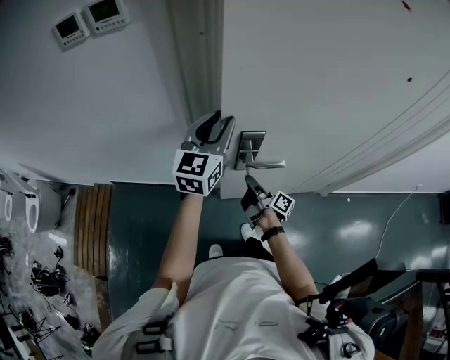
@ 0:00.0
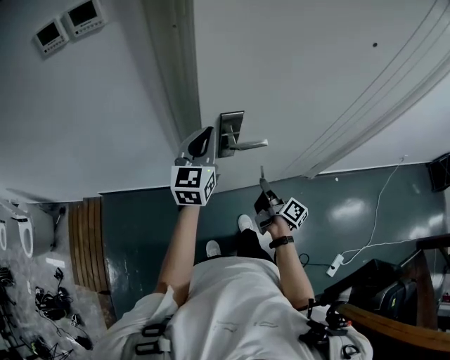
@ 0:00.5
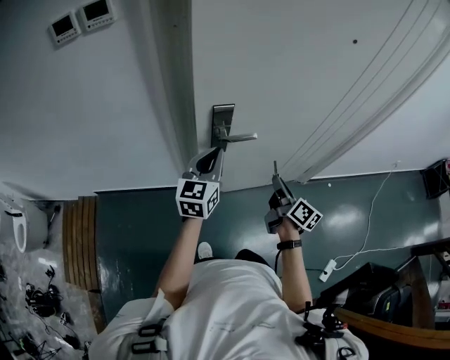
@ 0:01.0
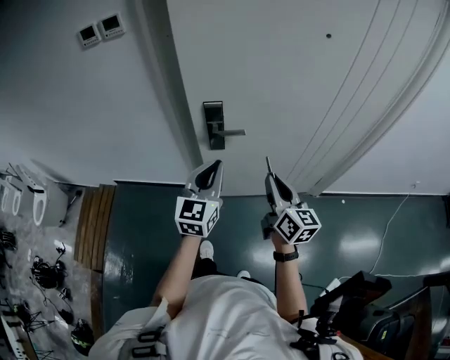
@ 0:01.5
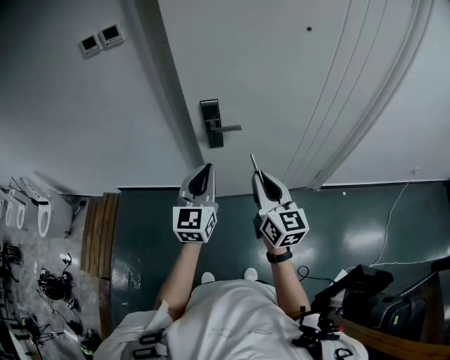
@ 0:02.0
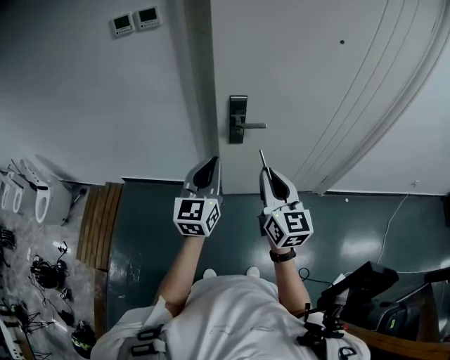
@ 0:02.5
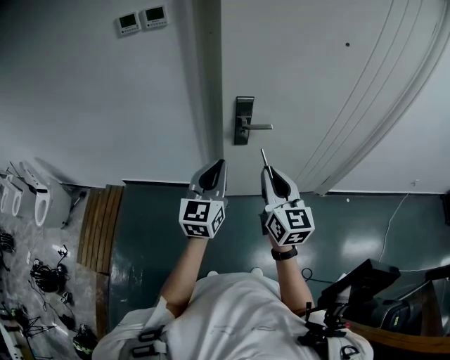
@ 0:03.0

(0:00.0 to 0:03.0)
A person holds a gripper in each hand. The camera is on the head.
0:00.0 - 0:01.5: The right gripper heads upward, backward and to the right, covering some 35 cm, and twists some 60 degrees counterclockwise, seen from behind; the left gripper moves backward and to the right, about 25 cm, and closes.
0:01.5 - 0:03.0: The left gripper travels to the left and backward by about 15 cm; the right gripper goes approximately 15 cm to the left, backward and upward.

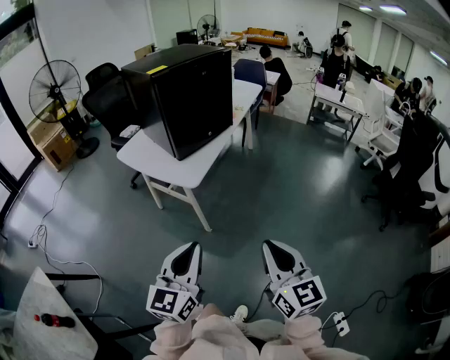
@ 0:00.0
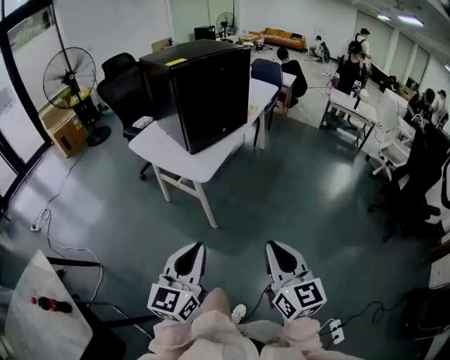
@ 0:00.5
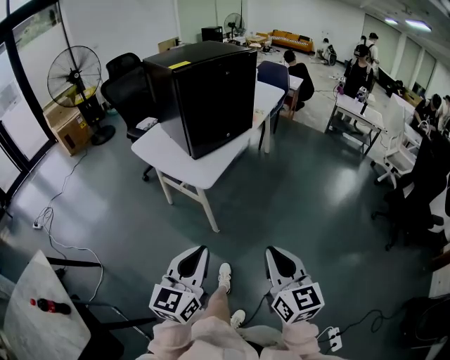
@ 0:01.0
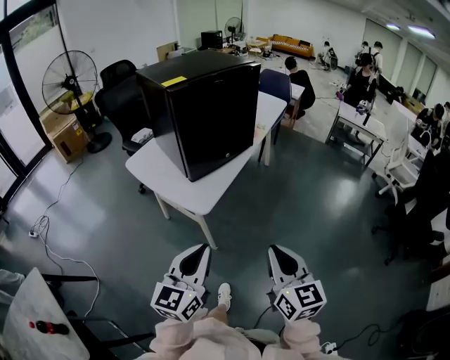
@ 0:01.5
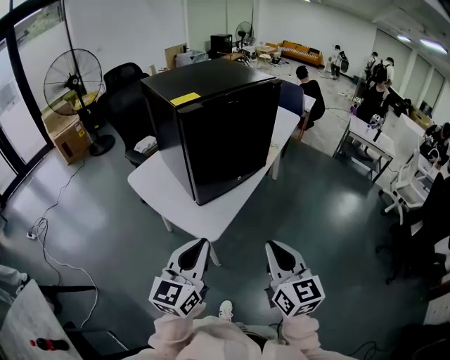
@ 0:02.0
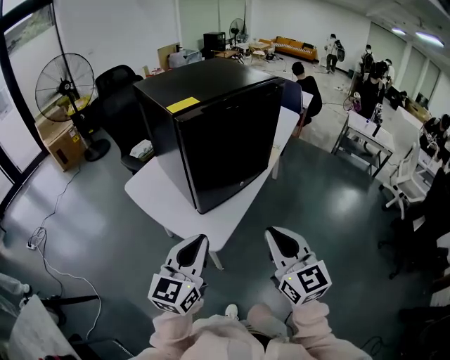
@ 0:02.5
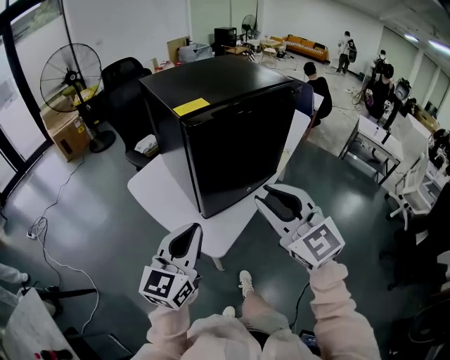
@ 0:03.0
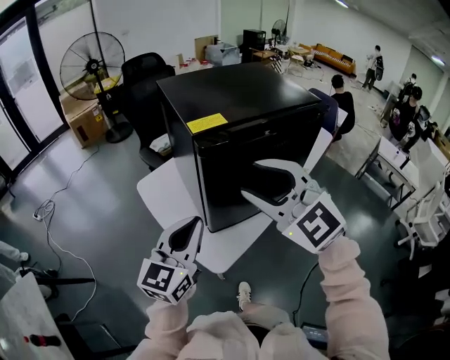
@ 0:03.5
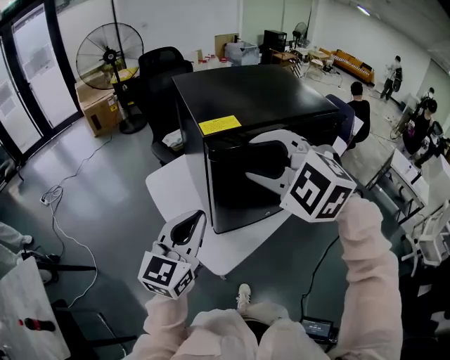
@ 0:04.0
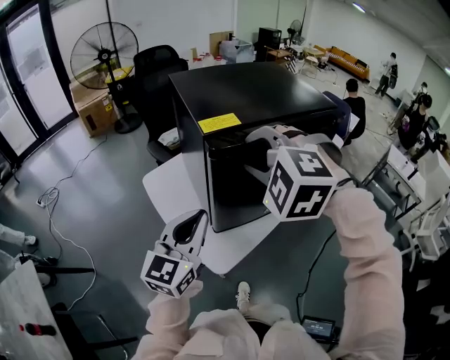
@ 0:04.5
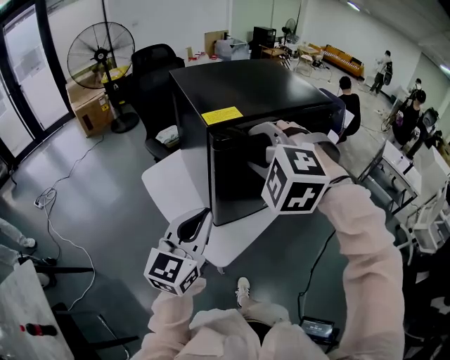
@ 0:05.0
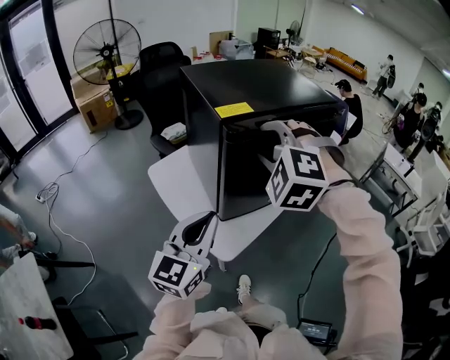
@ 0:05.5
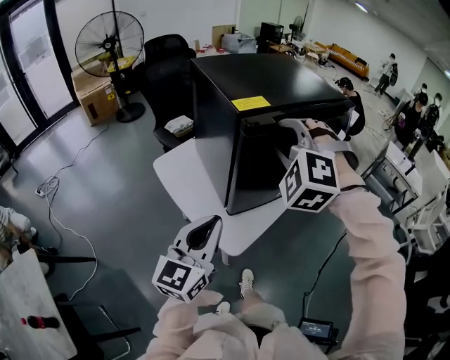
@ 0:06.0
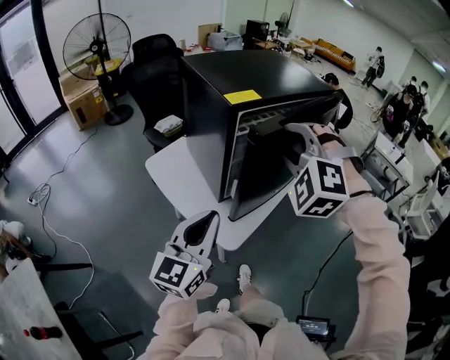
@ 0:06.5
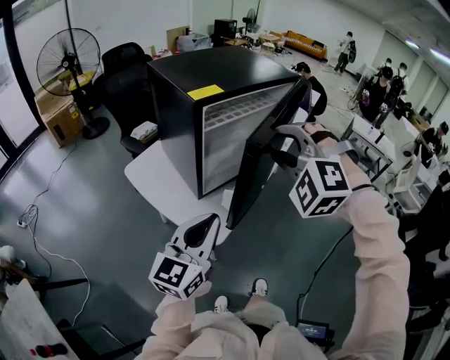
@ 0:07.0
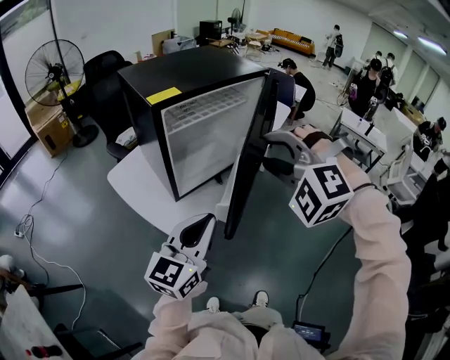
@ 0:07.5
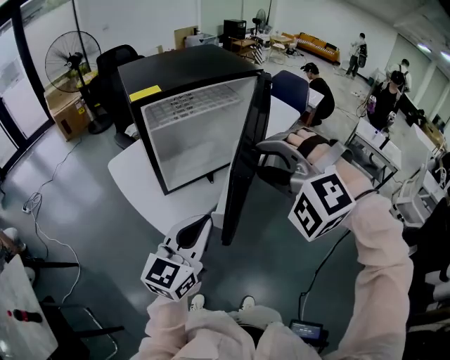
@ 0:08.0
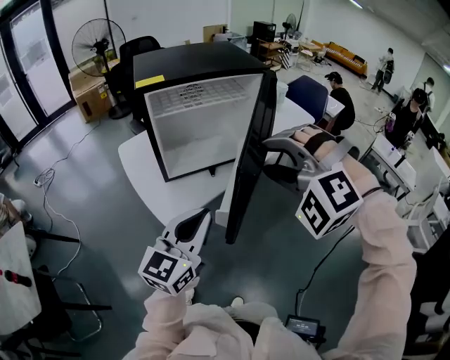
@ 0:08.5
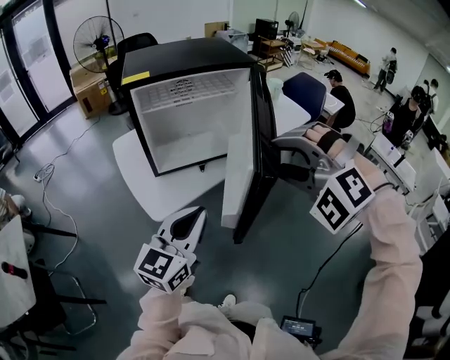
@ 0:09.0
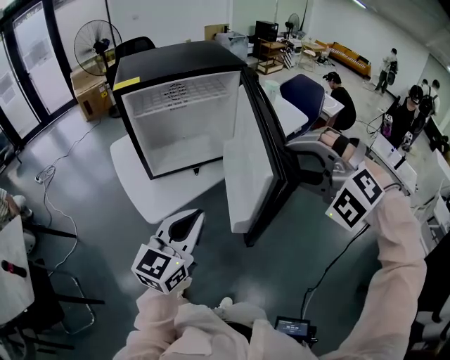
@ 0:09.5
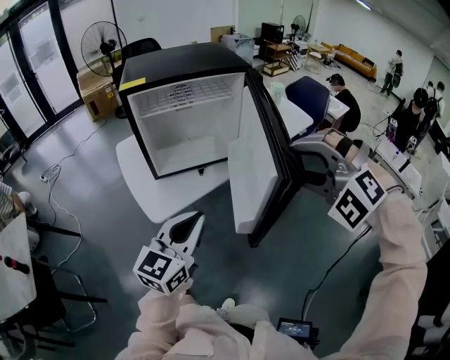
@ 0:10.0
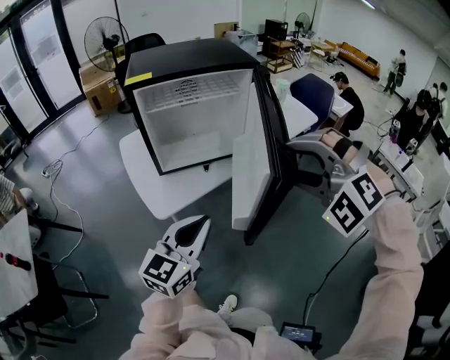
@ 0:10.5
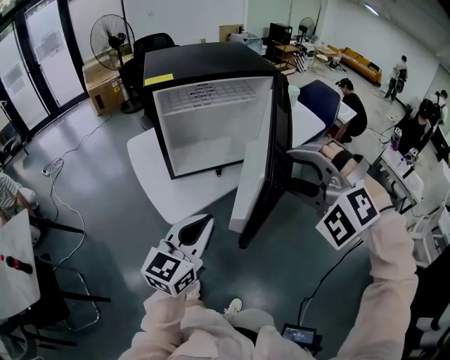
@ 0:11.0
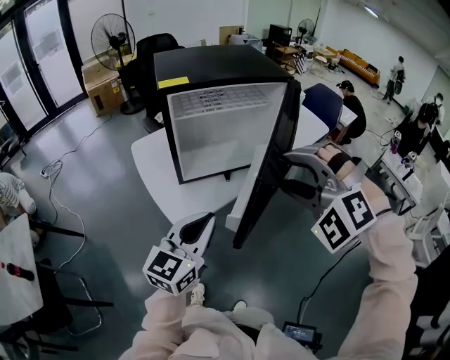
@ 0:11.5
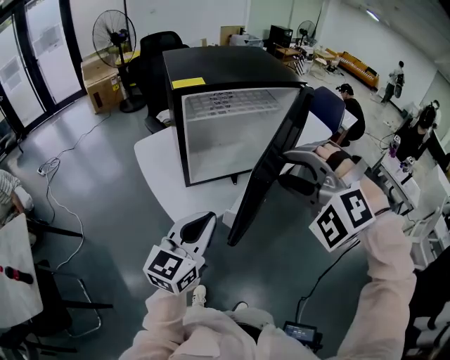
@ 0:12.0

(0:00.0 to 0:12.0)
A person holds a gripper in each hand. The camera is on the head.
0:00.0 - 0:02.0: The two grippers go about 30 cm forward.
0:02.0 - 0:04.0: The left gripper goes about 20 cm forward. The right gripper travels forward and upward by about 35 cm, rotates around the line of its fingers by roughly 70 degrees, counterclockwise from behind, and opens its fingers.
0:04.0 - 0:06.0: The left gripper heads backward, covering some 10 cm, while the right gripper turns by about 30 degrees.
0:06.0 - 0:08.0: The right gripper goes roughly 25 cm to the right and backward. The left gripper travels to the right by approximately 25 cm.
0:08.0 - 0:10.0: The left gripper moves to the right, about 10 cm; the right gripper travels to the right by roughly 20 cm.
0:10.0 - 0:12.0: Both grippers move to the left, some 15 cm.

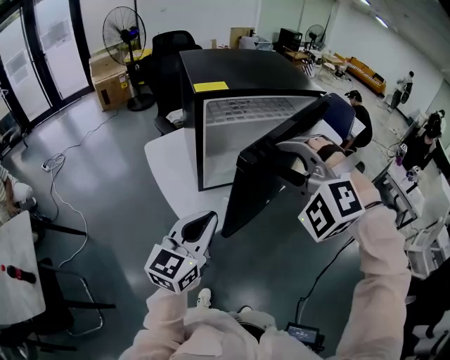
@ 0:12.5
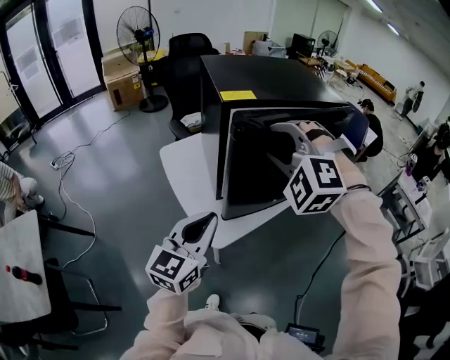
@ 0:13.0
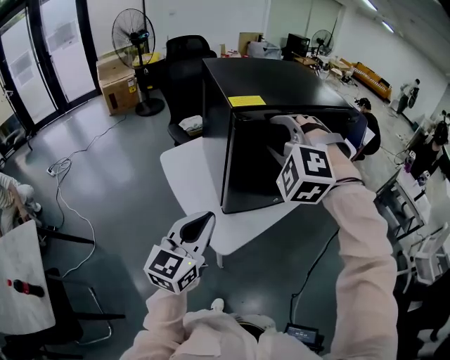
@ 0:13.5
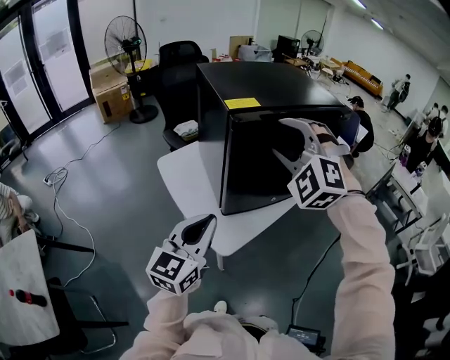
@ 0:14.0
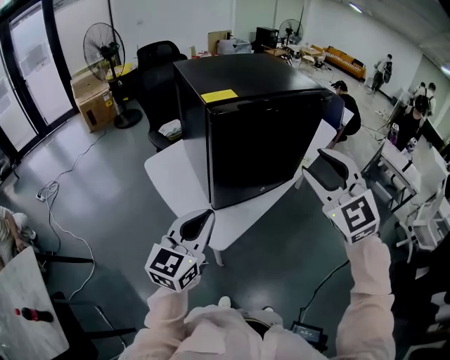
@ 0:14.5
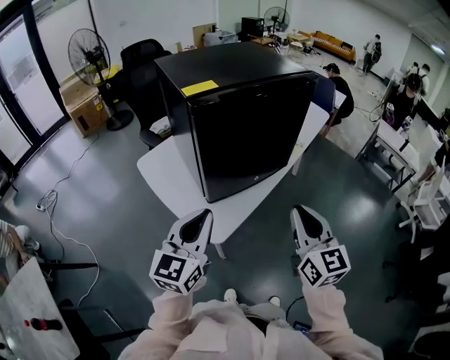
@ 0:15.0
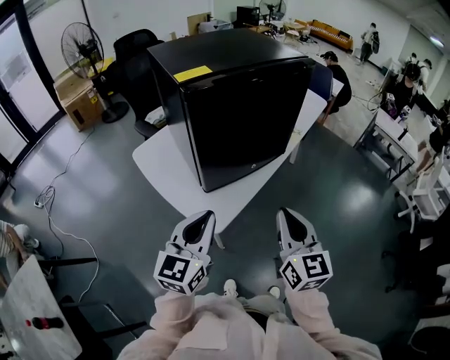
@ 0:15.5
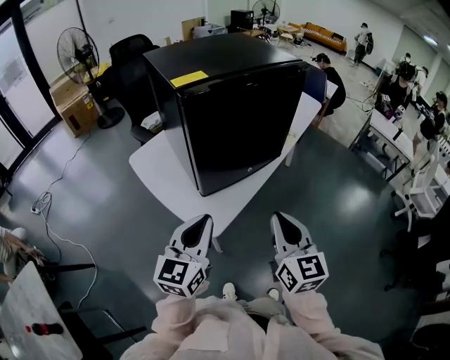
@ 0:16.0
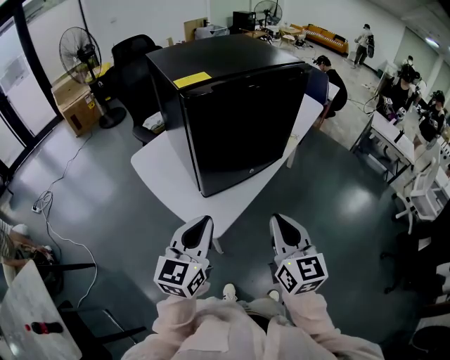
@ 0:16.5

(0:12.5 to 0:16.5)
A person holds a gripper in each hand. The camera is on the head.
0:12.5 - 0:14.5: The left gripper goes some 10 cm to the left. Meanwhile the right gripper reaches approximately 10 cm to the left, then returns, and rolls clockwise, seen from behind, by roughly 50 degrees.
0:14.5 - 0:16.5: The right gripper shifts about 20 cm downward and backward, rolls clockwise, seen from behind, by roughly 50 degrees, and closes. The left gripper changes place by roughly 5 cm.

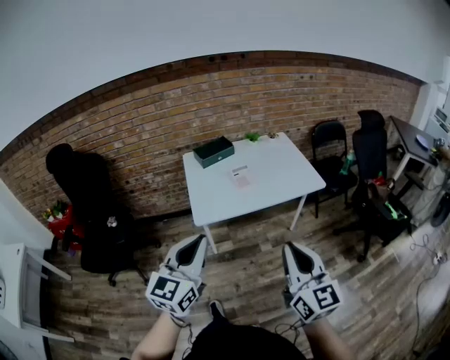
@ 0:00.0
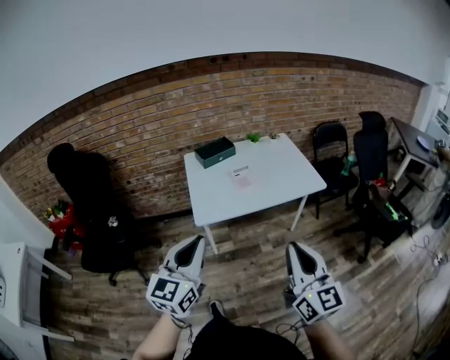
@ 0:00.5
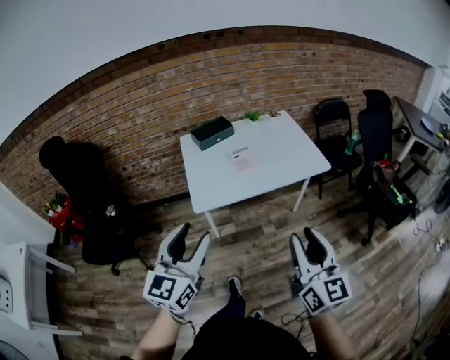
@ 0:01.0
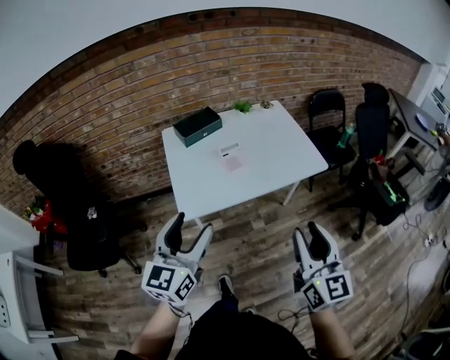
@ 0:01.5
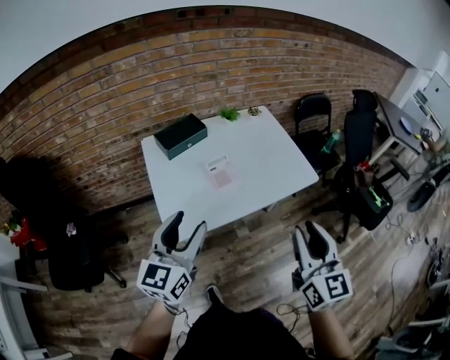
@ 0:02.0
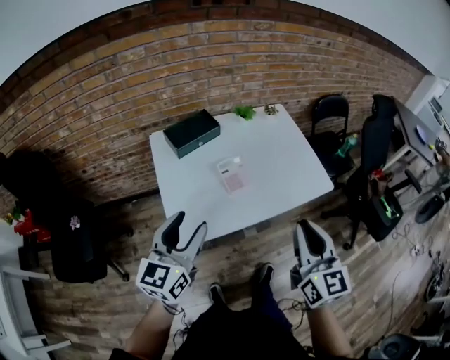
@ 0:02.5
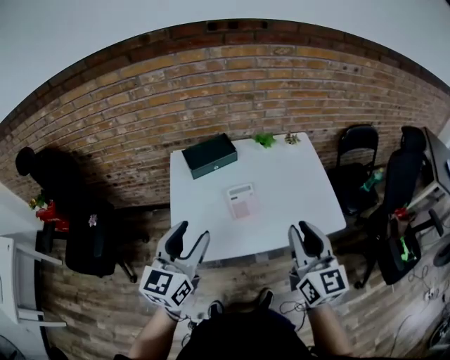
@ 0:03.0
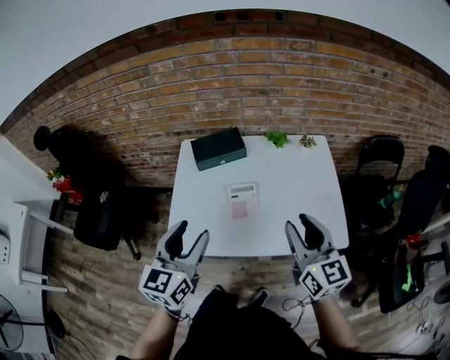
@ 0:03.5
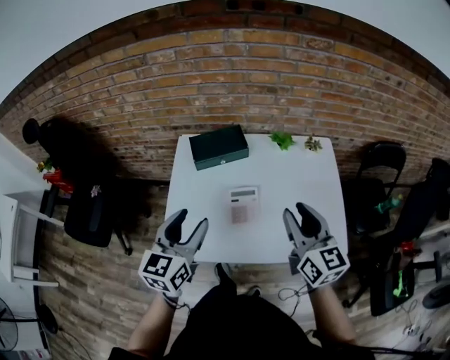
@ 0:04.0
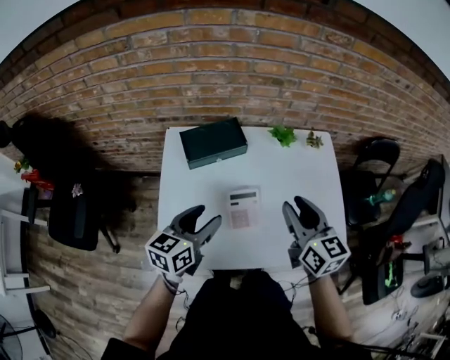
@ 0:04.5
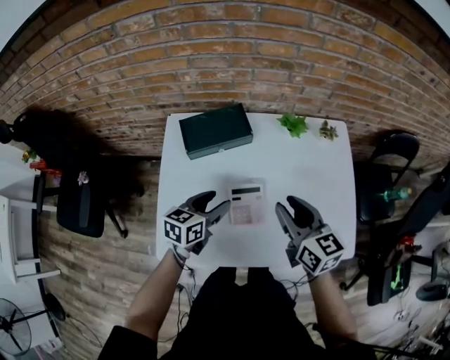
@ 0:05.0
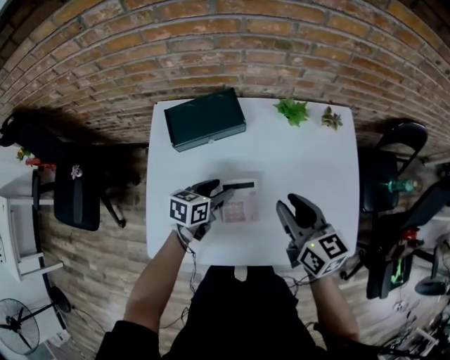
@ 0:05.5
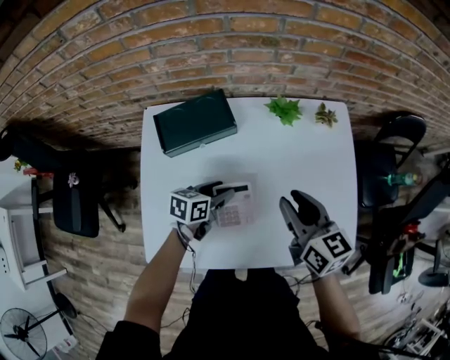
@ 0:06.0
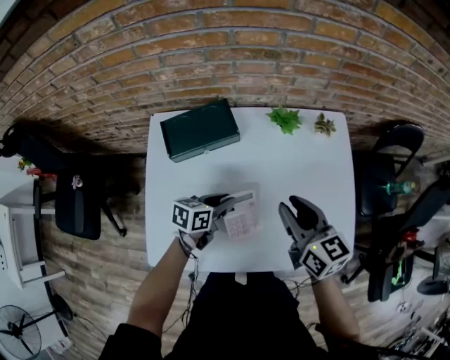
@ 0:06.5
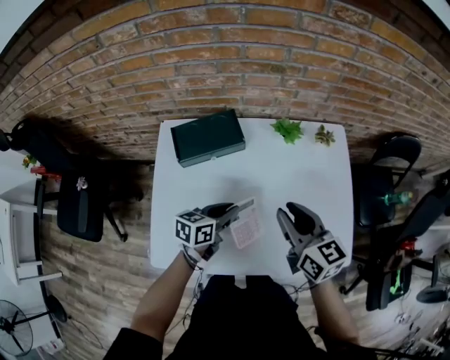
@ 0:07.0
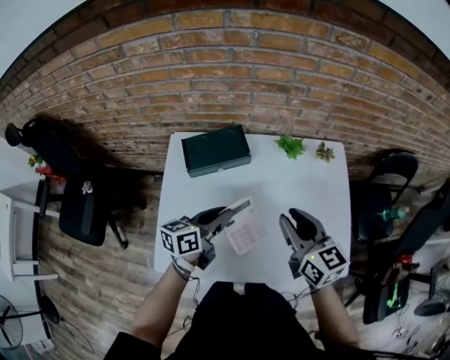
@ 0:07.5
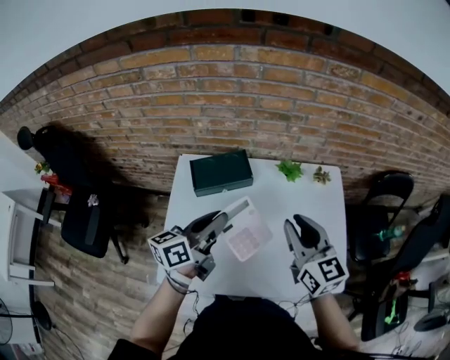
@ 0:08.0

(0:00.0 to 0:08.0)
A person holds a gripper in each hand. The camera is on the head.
0:00.0 - 0:02.0: The two grippers go some 30 cm forward. The right gripper opens. Meanwhile the left gripper opens its fingers.
0:02.0 - 0:04.0: The right gripper moves some 35 cm, and changes its angle by roughly 30 degrees, while the left gripper moves about 20 cm, and swivels about 30 degrees.
0:04.0 - 0:06.0: The right gripper is displaced downward and forward by about 20 cm; the left gripper travels downward and forward by approximately 40 cm, and swivels about 50 degrees.
0:06.0 - 0:08.0: The left gripper shifts about 30 cm upward, tilts its fingers about 30 degrees upward, and closes its fingers; the right gripper moves upward, roughly 15 cm, and turns by roughly 20 degrees.
